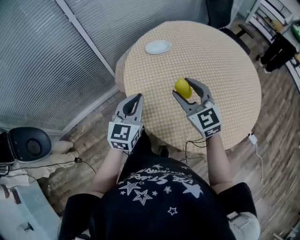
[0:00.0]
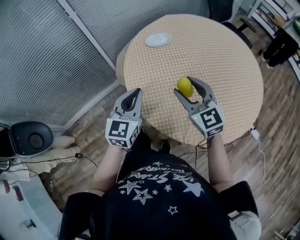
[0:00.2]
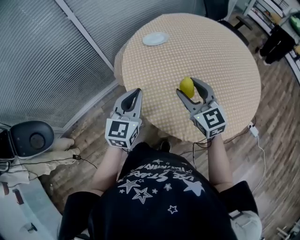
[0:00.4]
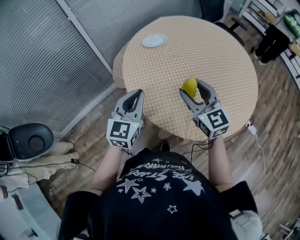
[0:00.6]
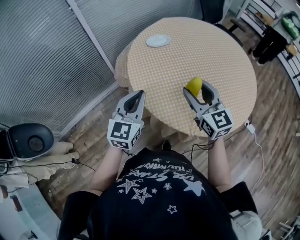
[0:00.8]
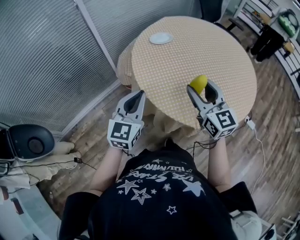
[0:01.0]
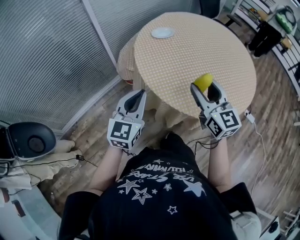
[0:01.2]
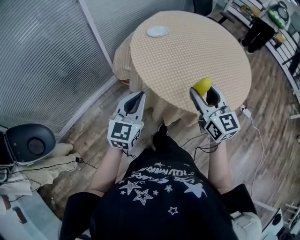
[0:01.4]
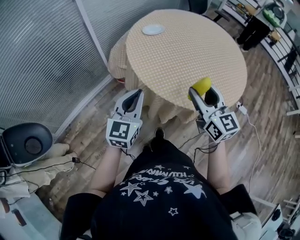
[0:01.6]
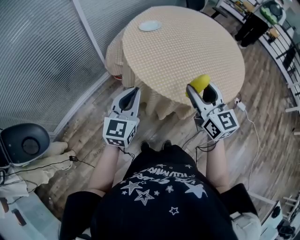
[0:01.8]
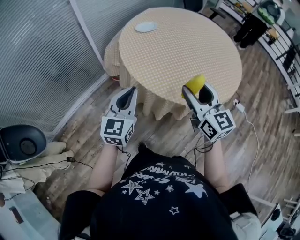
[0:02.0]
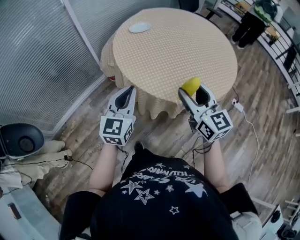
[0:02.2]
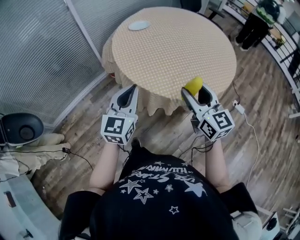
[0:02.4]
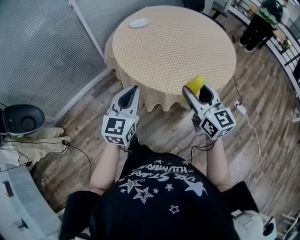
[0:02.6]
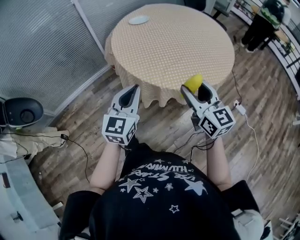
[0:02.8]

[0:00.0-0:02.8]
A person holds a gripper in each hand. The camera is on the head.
0:00.0 to 0:01.4: The two grippers go approximately 20 cm backward and to the left. The right gripper changes its angle by roughly 30 degrees.
0:01.4 to 0:02.8: The two grippers go some 20 cm to the right and backward.

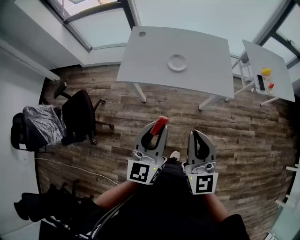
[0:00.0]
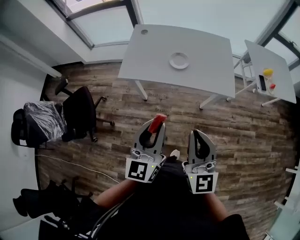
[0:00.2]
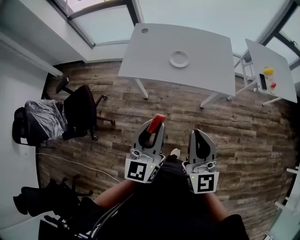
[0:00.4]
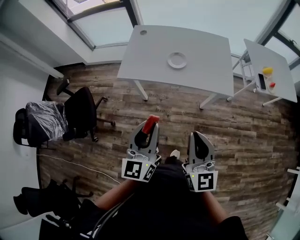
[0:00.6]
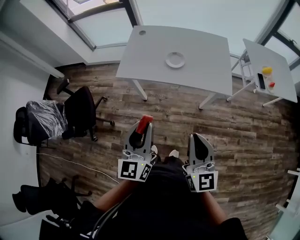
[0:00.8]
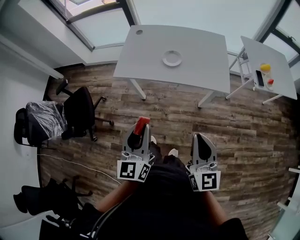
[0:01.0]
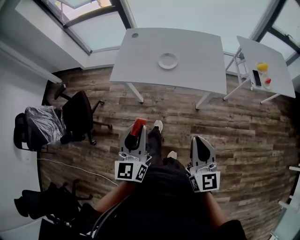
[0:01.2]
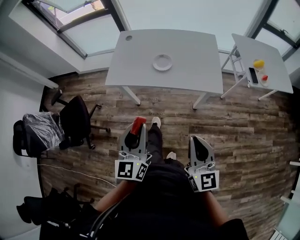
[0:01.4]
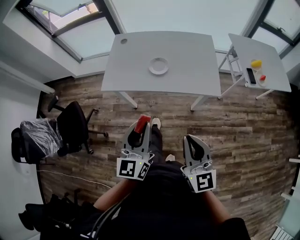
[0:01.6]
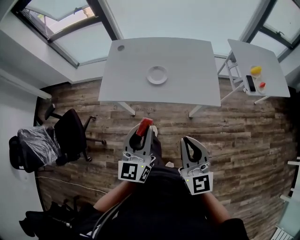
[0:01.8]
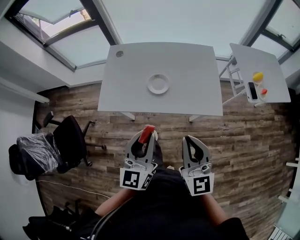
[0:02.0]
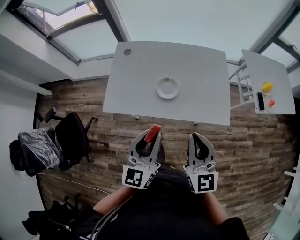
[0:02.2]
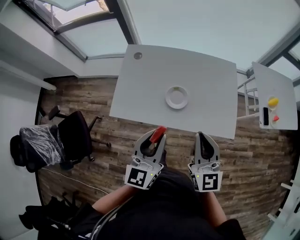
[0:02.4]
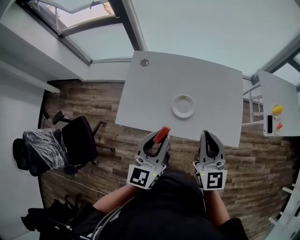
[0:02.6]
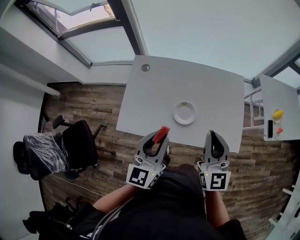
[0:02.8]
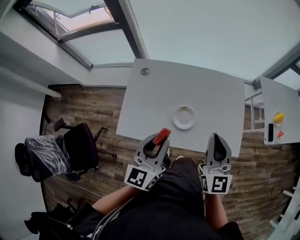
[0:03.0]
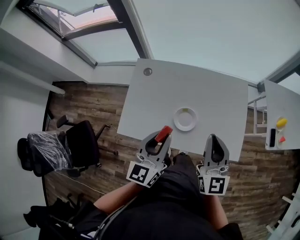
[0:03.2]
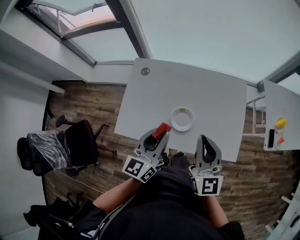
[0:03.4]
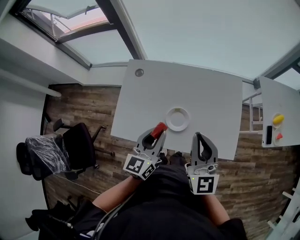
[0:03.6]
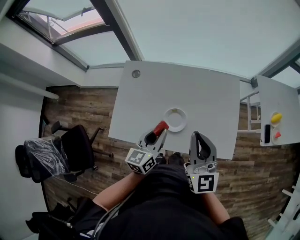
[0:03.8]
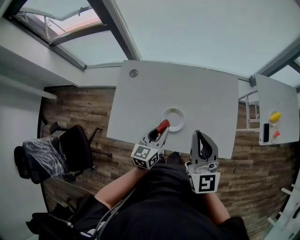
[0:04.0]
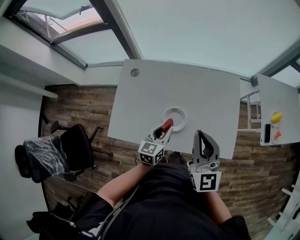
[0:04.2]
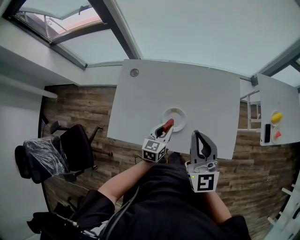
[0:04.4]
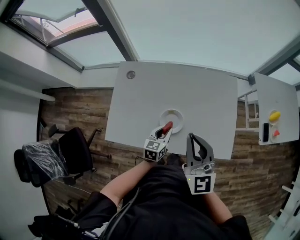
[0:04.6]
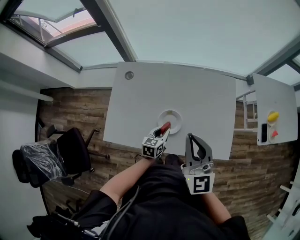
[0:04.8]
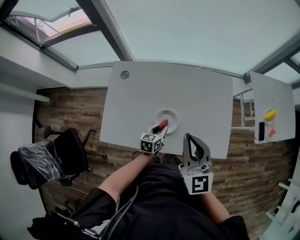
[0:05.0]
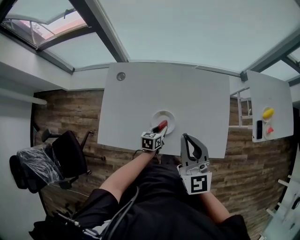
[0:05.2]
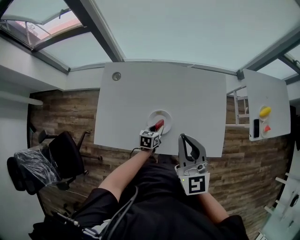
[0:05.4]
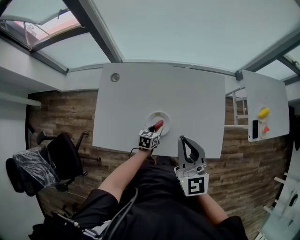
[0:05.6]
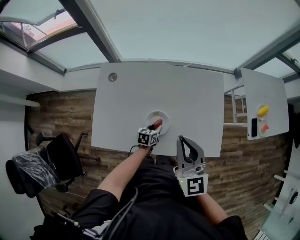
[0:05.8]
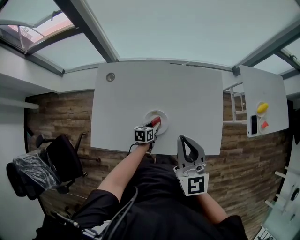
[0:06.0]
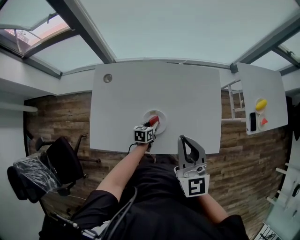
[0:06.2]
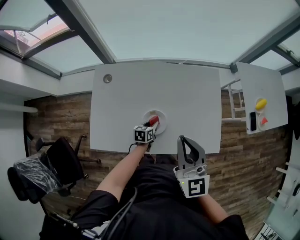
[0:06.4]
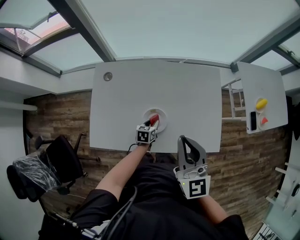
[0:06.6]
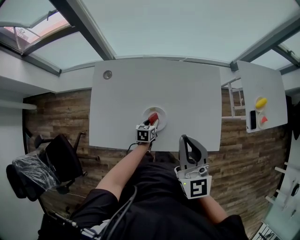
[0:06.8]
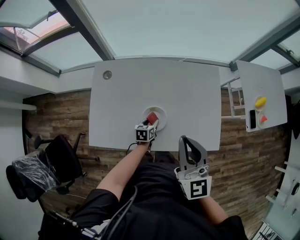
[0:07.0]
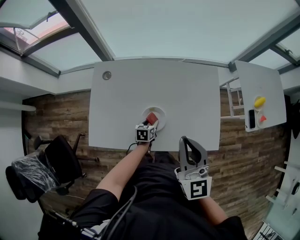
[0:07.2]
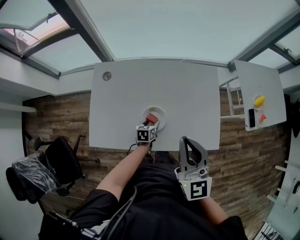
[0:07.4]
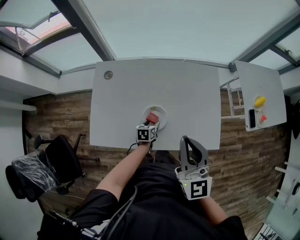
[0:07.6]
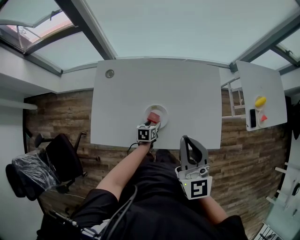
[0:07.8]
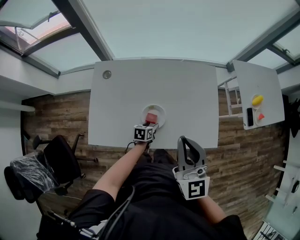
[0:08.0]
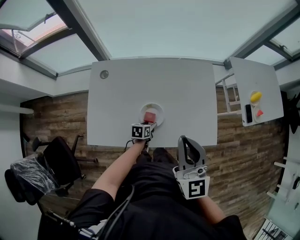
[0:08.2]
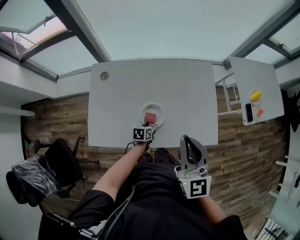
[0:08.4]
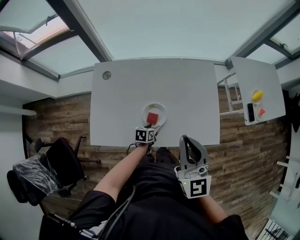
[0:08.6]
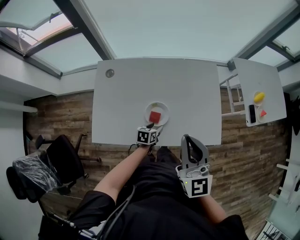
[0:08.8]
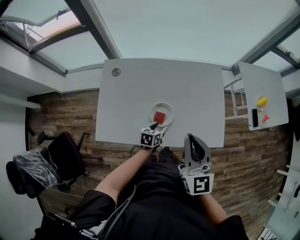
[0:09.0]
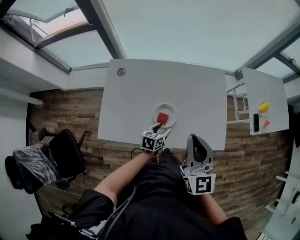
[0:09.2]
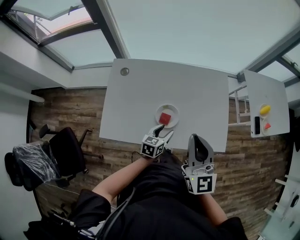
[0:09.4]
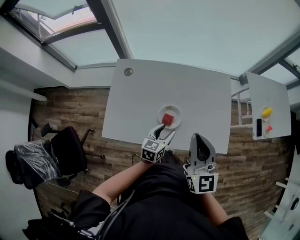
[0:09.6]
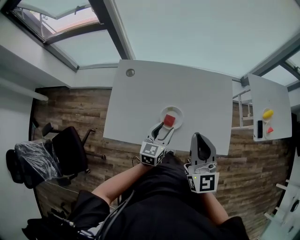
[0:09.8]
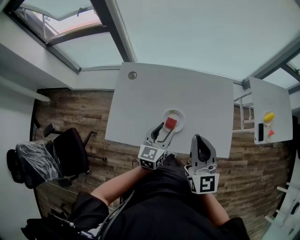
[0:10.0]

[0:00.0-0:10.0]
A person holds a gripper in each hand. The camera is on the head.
0:00.0 to 0:01.4: The right gripper moves to the right and downward, some 15 cm.
0:01.4 to 0:02.8: Both grippers move forward, approximately 35 cm.
0:02.8 to 0:04.2: The left gripper shifts about 20 cm downward, forward and to the right, and rotates about 20 degrees. The right gripper heads forward, covering about 5 cm.
0:04.2 to 0:05.8: The left gripper moves downward, approximately 20 cm, and changes its angle by some 30 degrees.
0:05.8 to 0:07.2: The grippers make only small movements.
0:07.2 to 0:08.6: The left gripper goes about 5 cm backward.
0:08.6 to 0:10.0: The left gripper moves upward, about 25 cm, and tips its fingers upward by some 30 degrees.

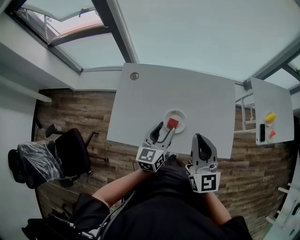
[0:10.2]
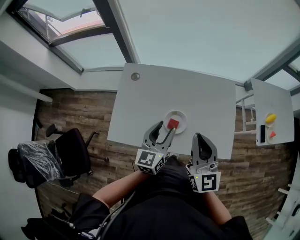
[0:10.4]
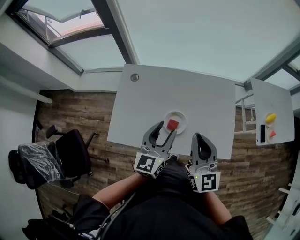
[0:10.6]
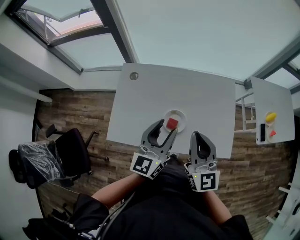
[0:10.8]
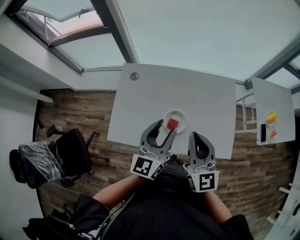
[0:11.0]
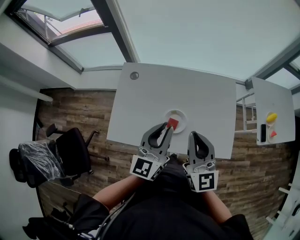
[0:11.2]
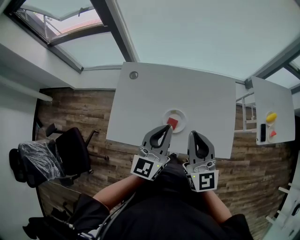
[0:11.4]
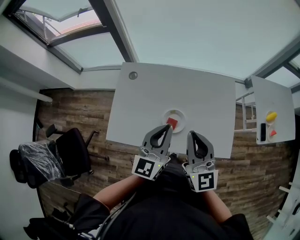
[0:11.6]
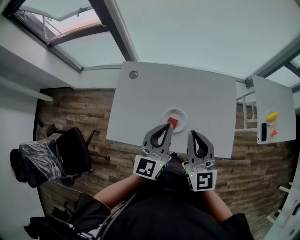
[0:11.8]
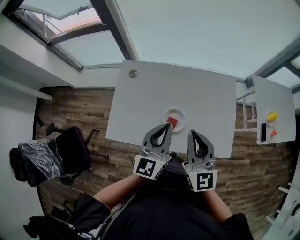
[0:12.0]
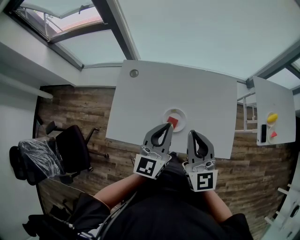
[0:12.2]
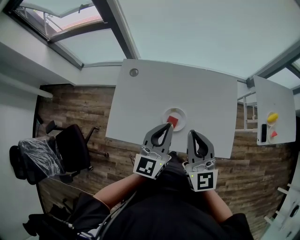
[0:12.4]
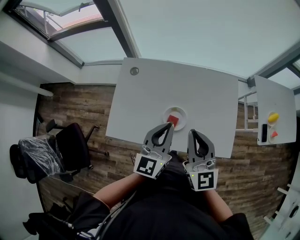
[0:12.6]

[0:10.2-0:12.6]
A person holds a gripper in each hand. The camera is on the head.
0:10.2 to 0:11.4: The left gripper goes approximately 10 cm upward, and closes.
0:11.4 to 0:12.6: The grippers make only small movements.

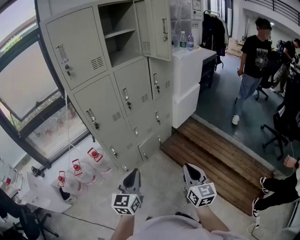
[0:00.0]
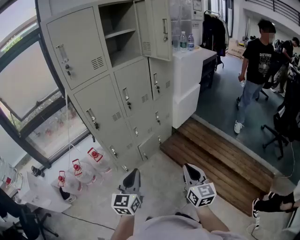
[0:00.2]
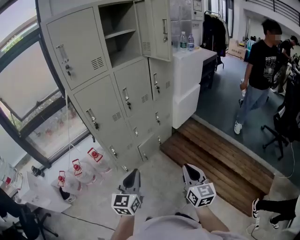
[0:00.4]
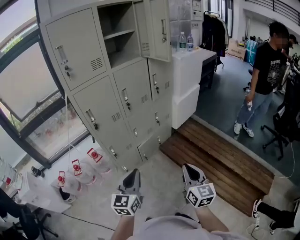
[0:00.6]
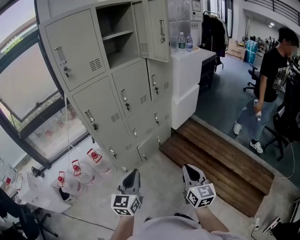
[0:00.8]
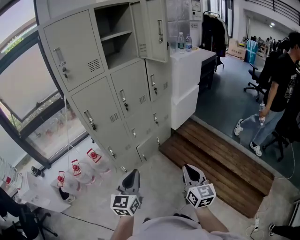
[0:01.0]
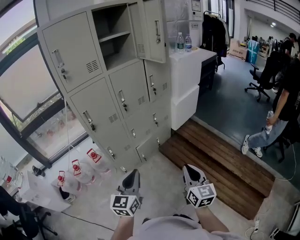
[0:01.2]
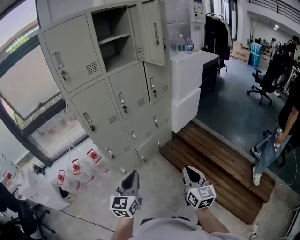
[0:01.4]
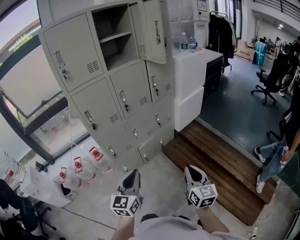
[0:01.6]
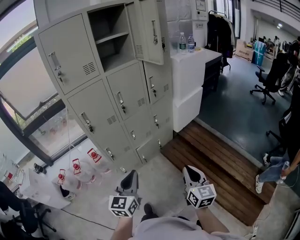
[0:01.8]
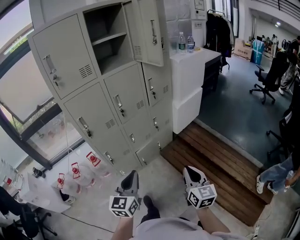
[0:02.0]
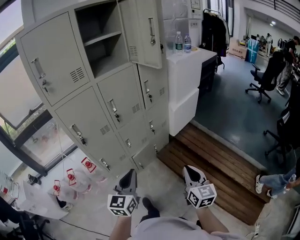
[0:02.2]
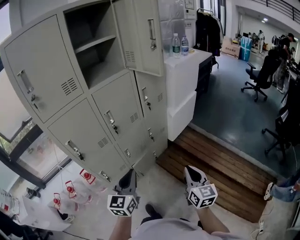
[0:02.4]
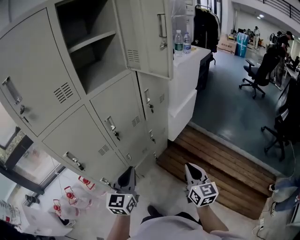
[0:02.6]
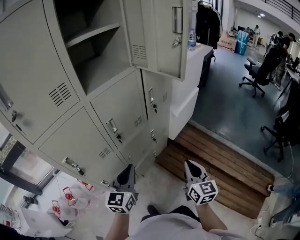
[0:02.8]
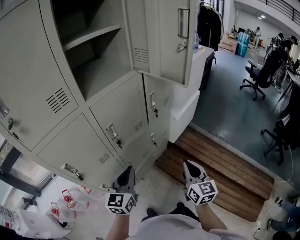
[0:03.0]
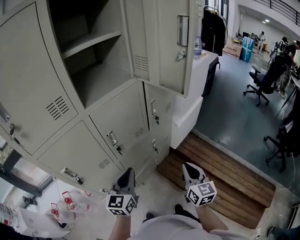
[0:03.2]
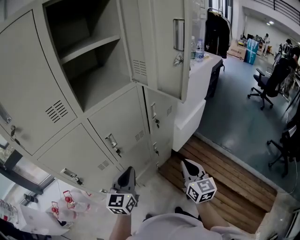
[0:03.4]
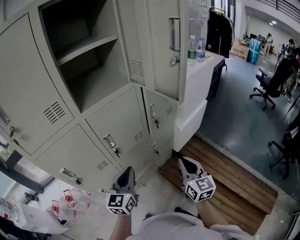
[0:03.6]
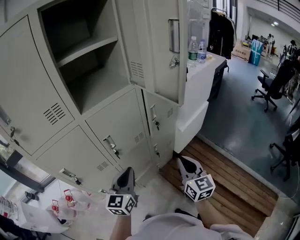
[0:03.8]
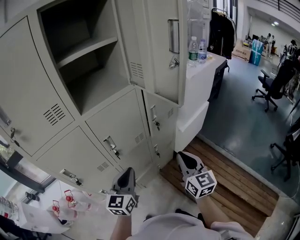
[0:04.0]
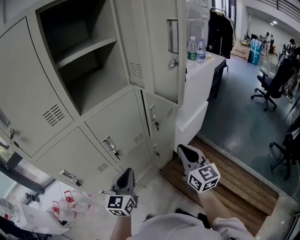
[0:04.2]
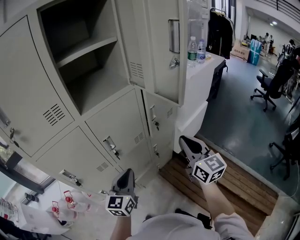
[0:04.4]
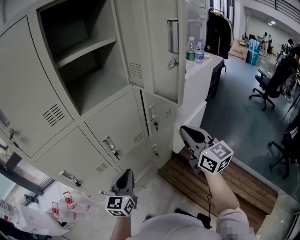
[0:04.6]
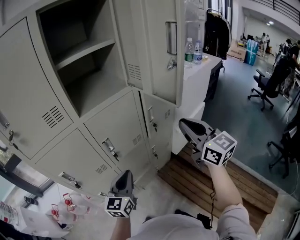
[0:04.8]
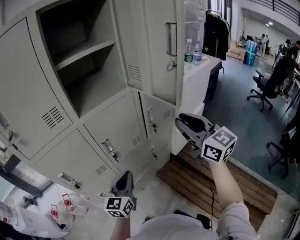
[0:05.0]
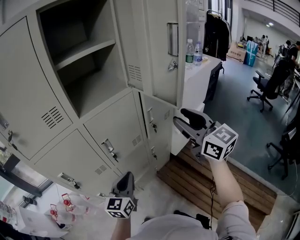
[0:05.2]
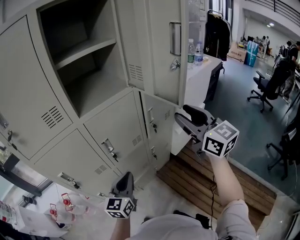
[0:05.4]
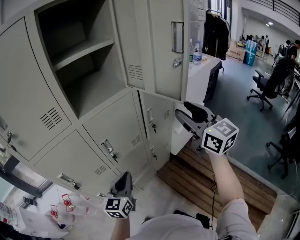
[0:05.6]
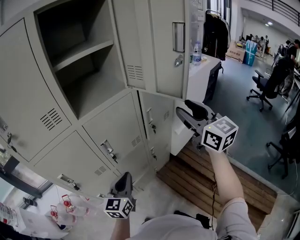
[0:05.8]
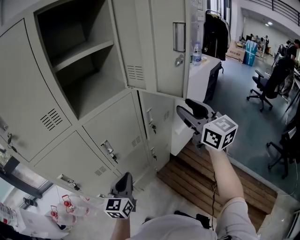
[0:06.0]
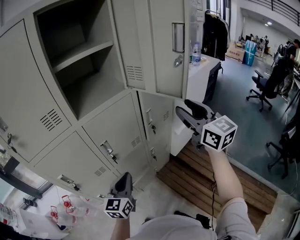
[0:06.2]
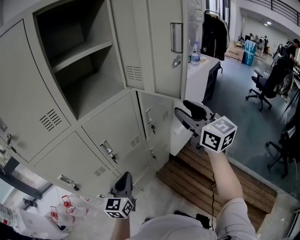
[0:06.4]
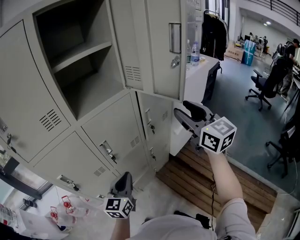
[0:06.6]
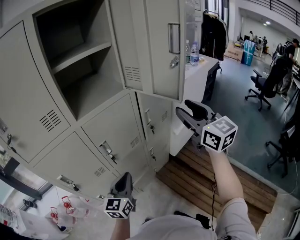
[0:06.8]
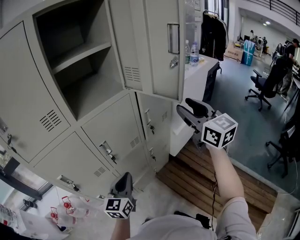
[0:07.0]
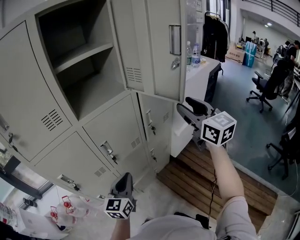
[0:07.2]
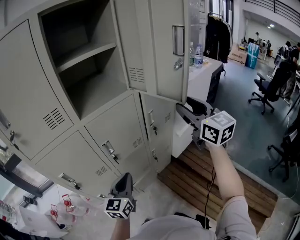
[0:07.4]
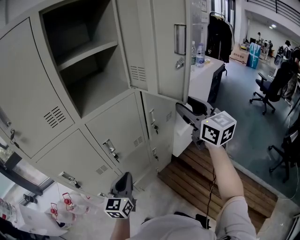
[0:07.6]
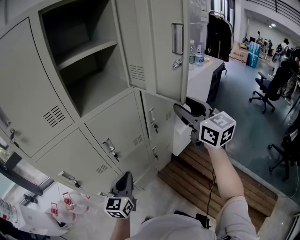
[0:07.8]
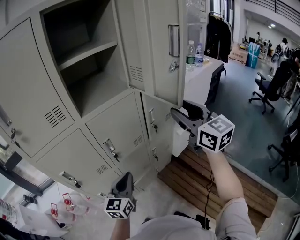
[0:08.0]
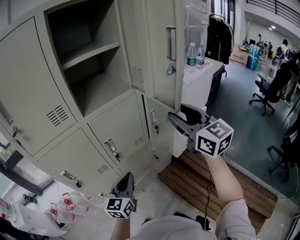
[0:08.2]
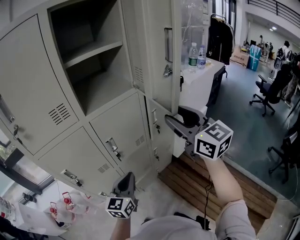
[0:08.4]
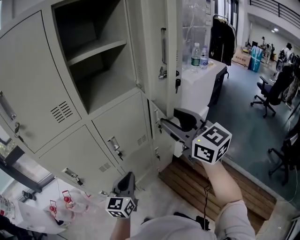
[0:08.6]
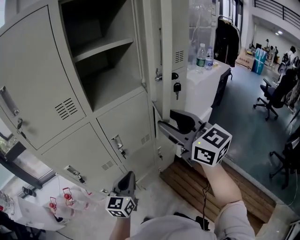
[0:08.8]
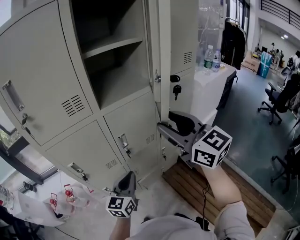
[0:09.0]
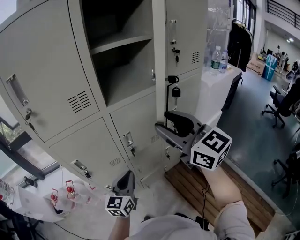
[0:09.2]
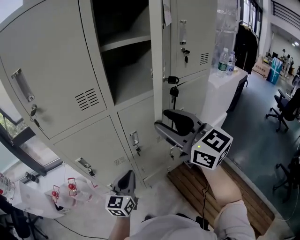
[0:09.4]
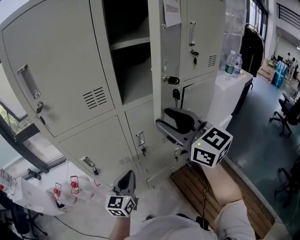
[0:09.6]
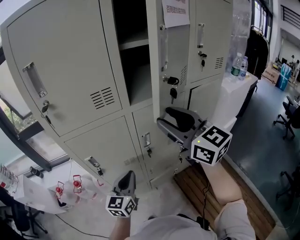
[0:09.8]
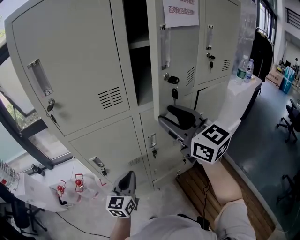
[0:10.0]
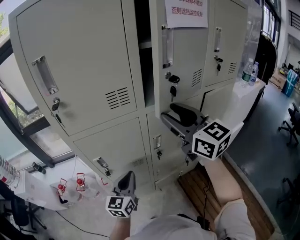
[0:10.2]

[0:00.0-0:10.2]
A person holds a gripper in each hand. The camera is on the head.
0:00.0 to 0:01.4: The two grippers go about 5 cm to the right.
0:01.4 to 0:03.0: Both grippers move forward, roughly 35 cm.
0:03.0 to 0:04.4: The right gripper shifts approximately 20 cm upward and forward, and rotates some 20 degrees, while the left gripper ends up about 5 cm from where it was.
0:04.4 to 0:05.8: The right gripper shifts roughly 15 cm upward and forward, and opens its fingers.
0:05.8 to 0:07.2: The grippers stay close to where they were, moving slightly.
0:07.2 to 0:08.8: The right gripper travels to the left by about 15 cm.
0:08.8 to 0:10.2: The left gripper heads to the left, covering approximately 15 cm; the right gripper travels to the left and forward by some 20 cm.
